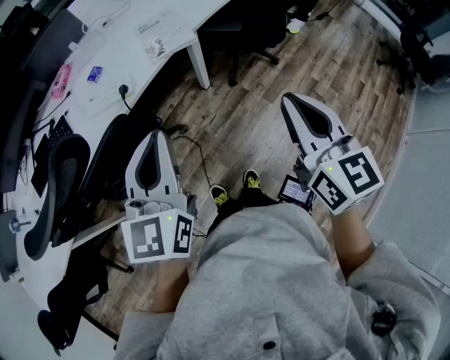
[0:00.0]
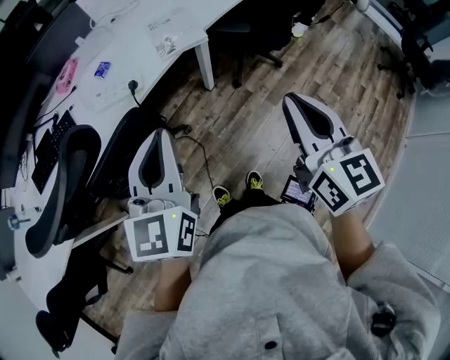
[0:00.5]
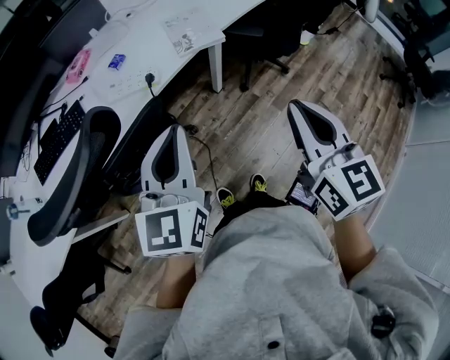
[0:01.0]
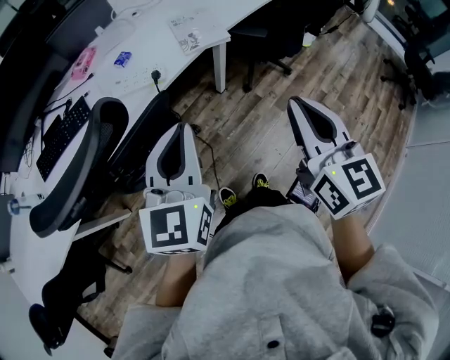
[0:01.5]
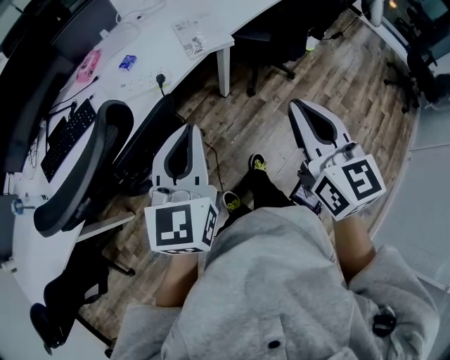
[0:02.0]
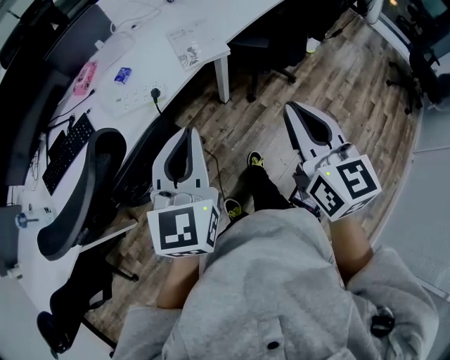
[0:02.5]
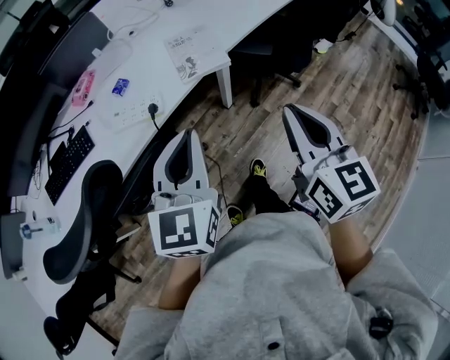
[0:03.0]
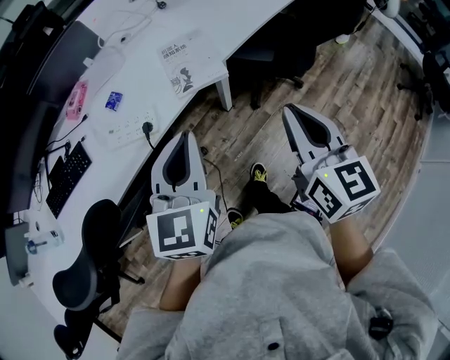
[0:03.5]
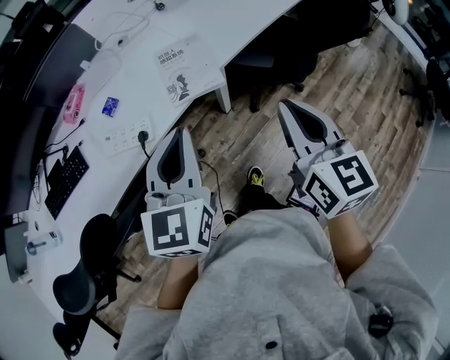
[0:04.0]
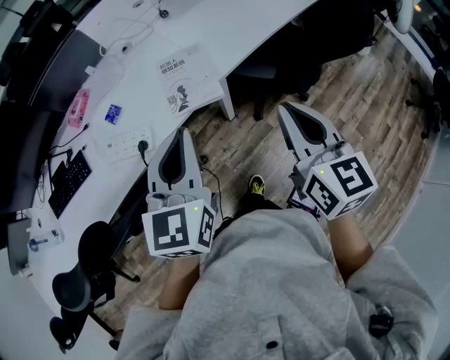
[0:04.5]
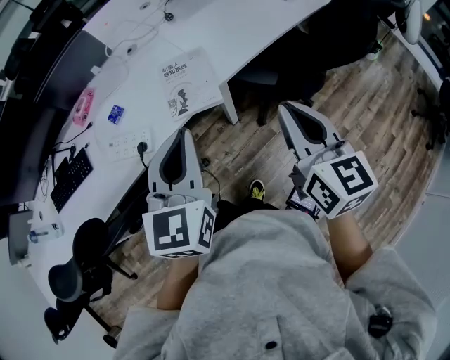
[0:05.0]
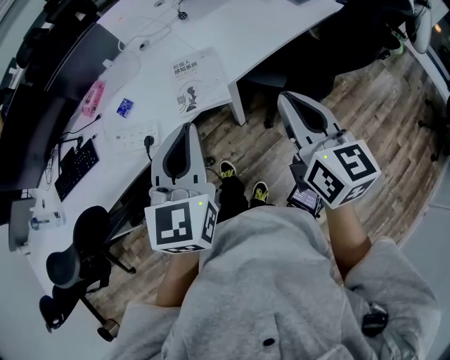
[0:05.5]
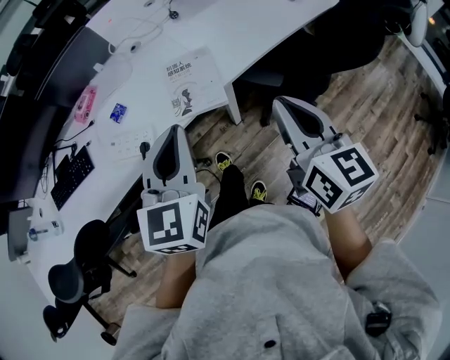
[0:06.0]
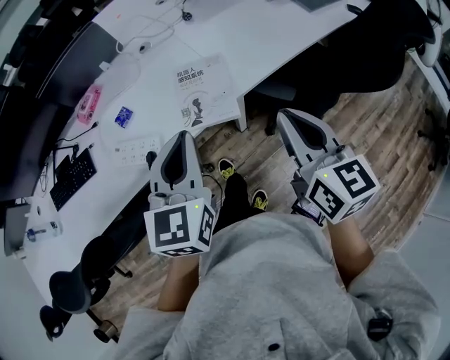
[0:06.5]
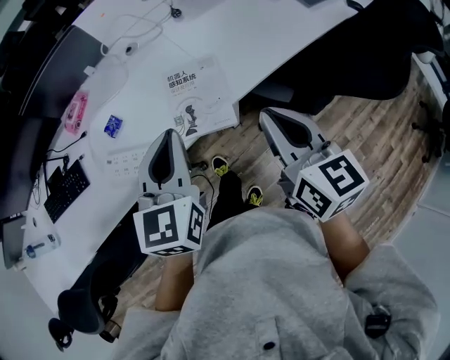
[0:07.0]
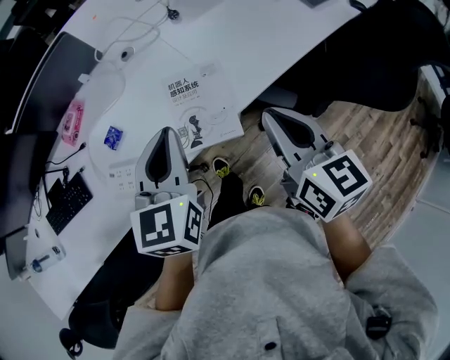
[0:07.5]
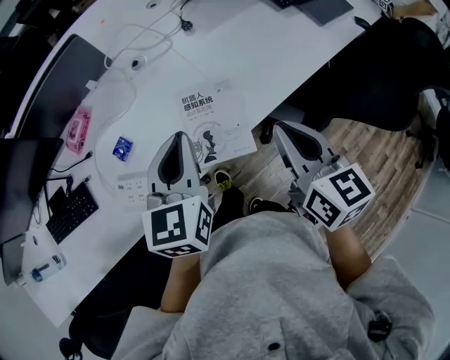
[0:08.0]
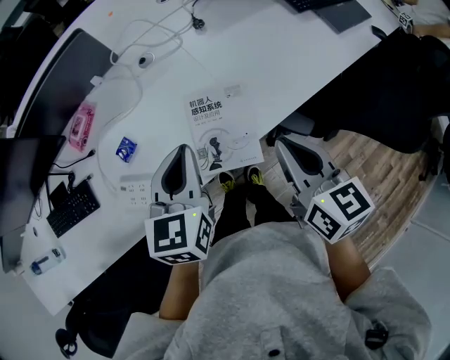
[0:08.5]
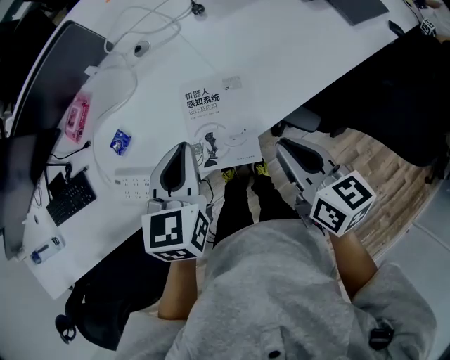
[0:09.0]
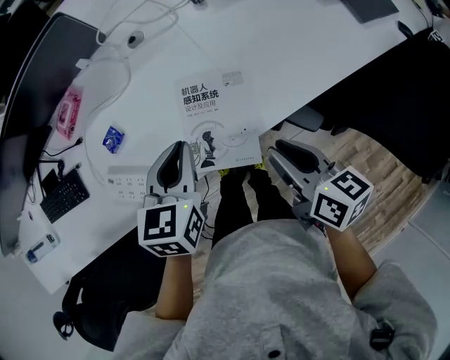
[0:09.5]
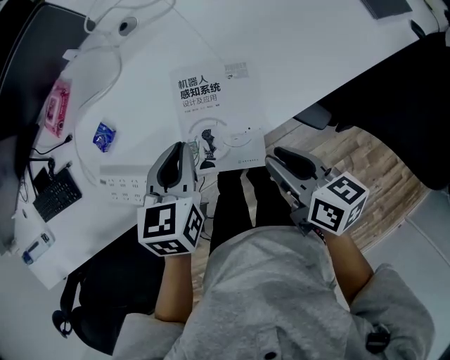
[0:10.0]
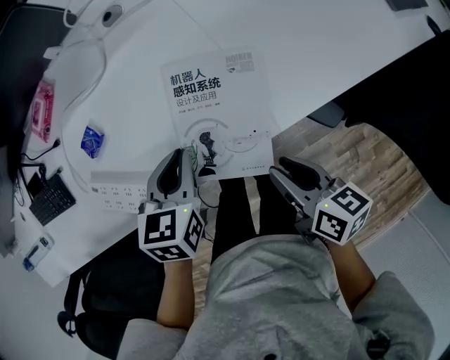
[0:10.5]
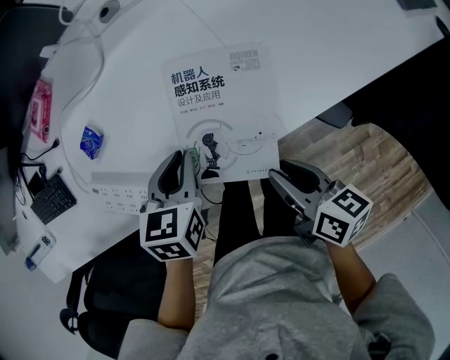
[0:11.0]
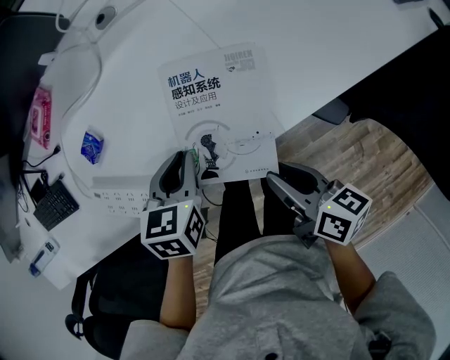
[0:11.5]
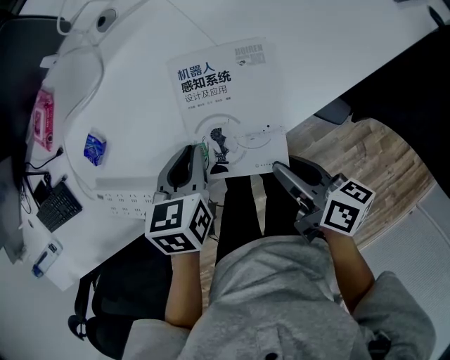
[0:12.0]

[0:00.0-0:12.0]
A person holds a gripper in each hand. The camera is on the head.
0:00.0 to 0:02.0: The left gripper heads to the left, covering some 5 cm. The right gripper heads to the left, covering approximately 10 cm.
0:02.0 to 0:04.0: The two grippers go roughly 20 cm forward.
0:04.0 to 0:06.0: The right gripper moves forward, some 5 cm, while the left gripper changes place by approximately 5 cm.
0:06.0 to 0:08.0: Both grippers move forward, roughly 20 cm.
0:08.0 to 0:10.0: The grippers both shift downward by approximately 15 cm. The left gripper changes its angle by approximately 20 degrees; the right gripper turns by roughly 40 degrees.
0:10.0 to 0:12.0: The grippers both shift downward by roughly 10 cm. The right gripper rotates about 20 degrees.

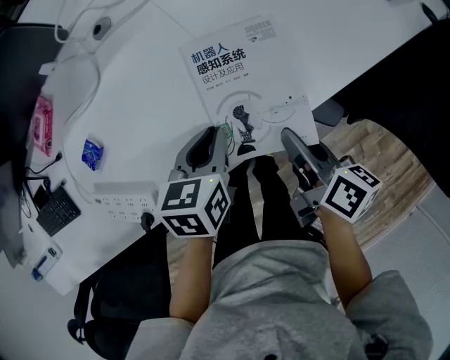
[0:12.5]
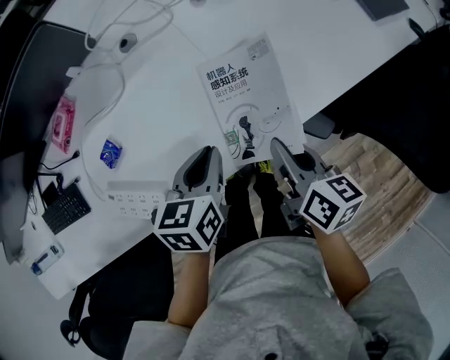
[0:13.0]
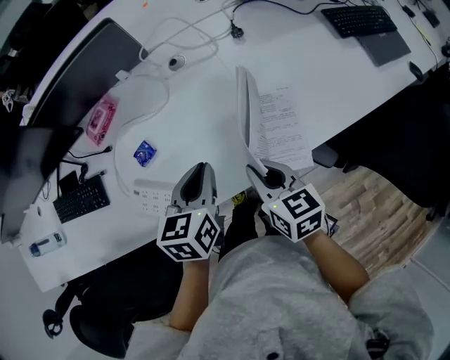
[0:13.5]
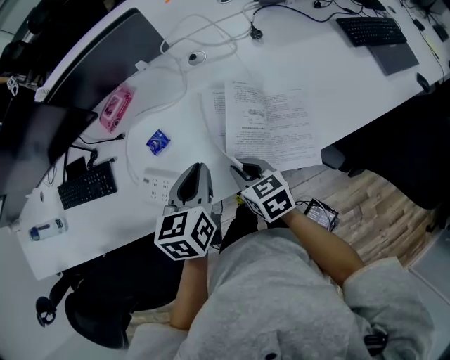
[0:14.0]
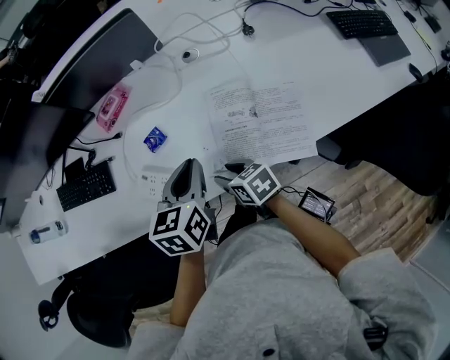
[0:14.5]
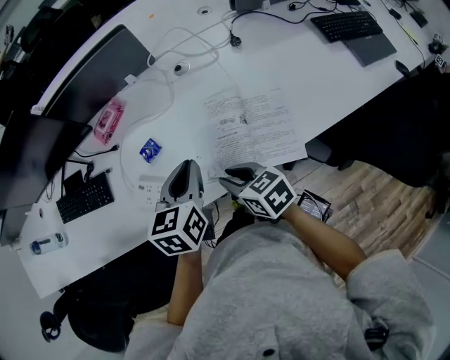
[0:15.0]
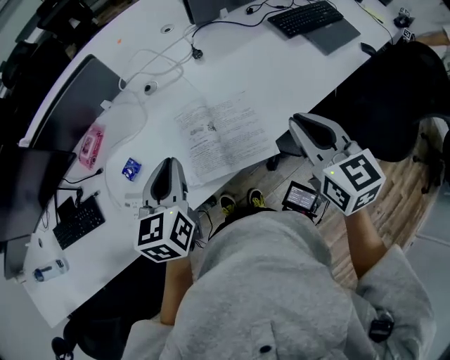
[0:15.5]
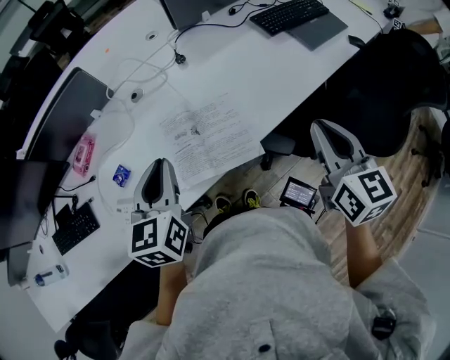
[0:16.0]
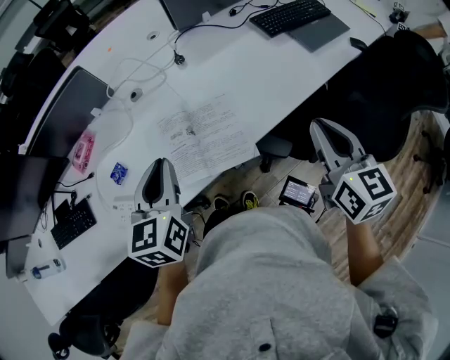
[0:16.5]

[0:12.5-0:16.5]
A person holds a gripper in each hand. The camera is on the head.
0:12.5 to 0:14.5: The left gripper goes roughly 15 cm upward, and turns by some 20 degrees. Meanwhile the right gripper moves some 10 cm upward and comes back, rotates some 60 degrees, and opens up.
0:14.5 to 0:16.5: The right gripper shifts by approximately 50 cm, swivels some 60 degrees, and closes, while the left gripper ends up about 15 cm from where it was.

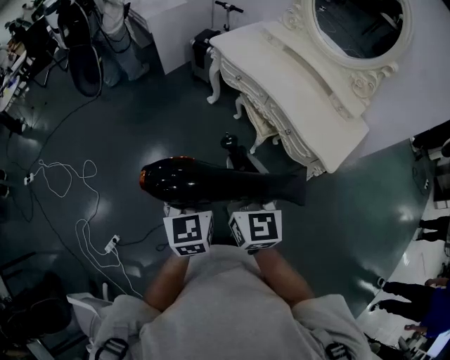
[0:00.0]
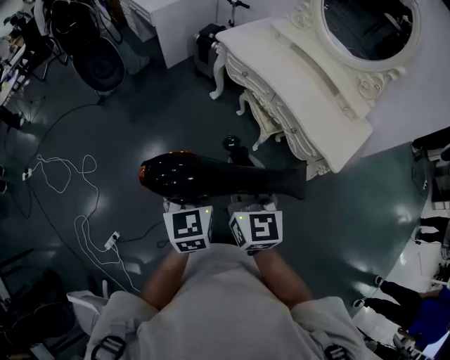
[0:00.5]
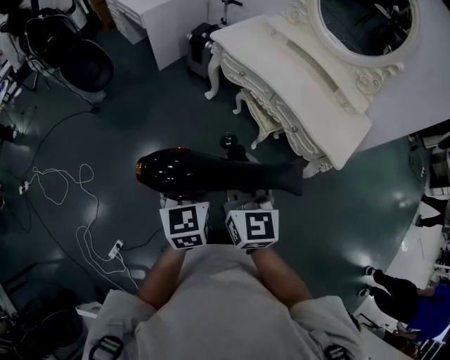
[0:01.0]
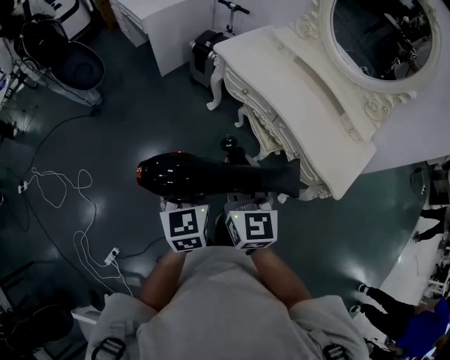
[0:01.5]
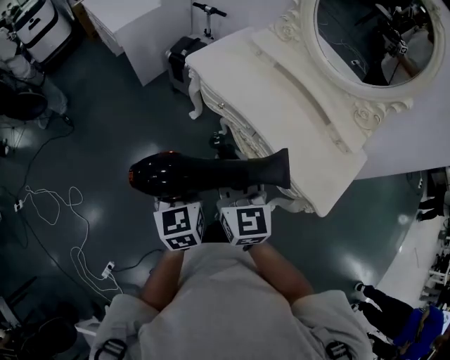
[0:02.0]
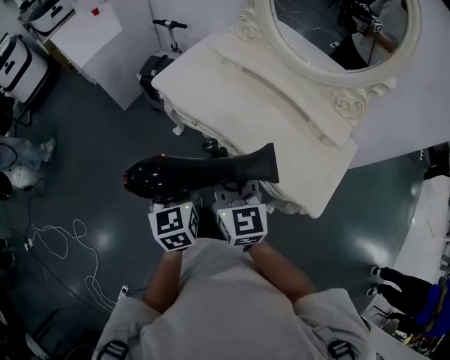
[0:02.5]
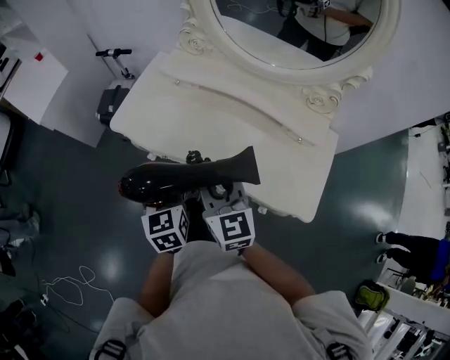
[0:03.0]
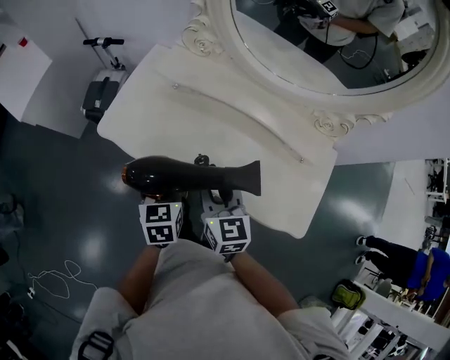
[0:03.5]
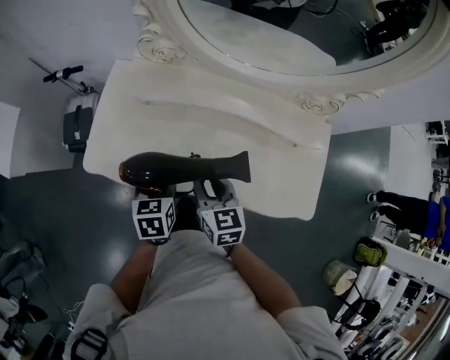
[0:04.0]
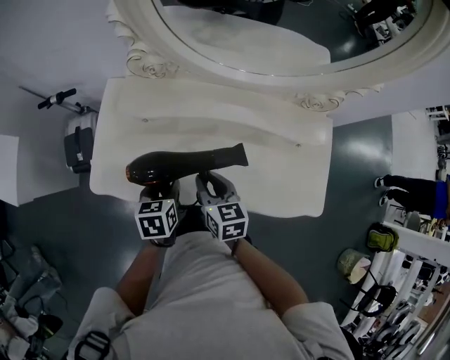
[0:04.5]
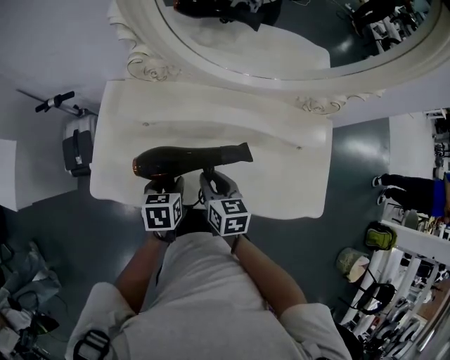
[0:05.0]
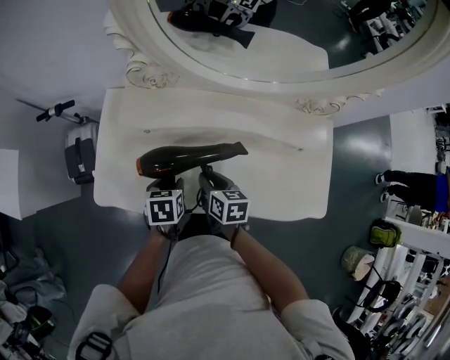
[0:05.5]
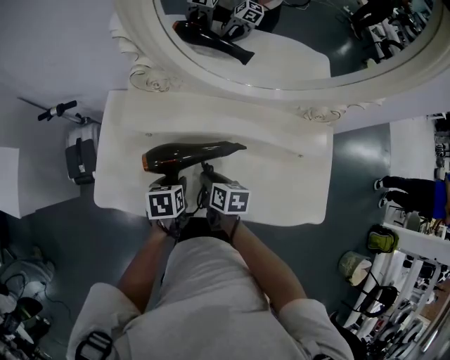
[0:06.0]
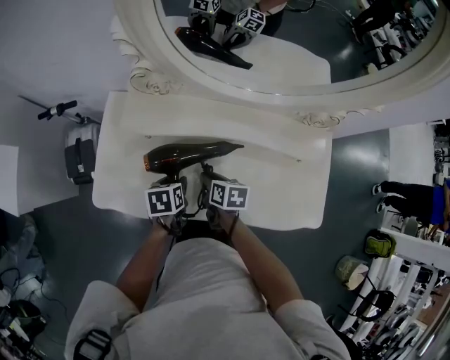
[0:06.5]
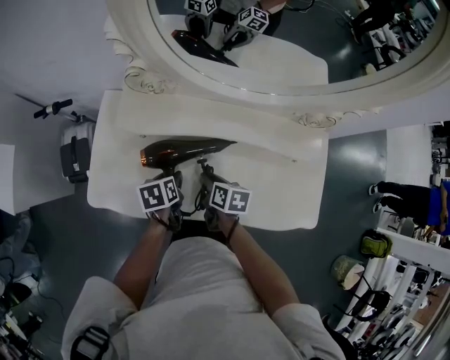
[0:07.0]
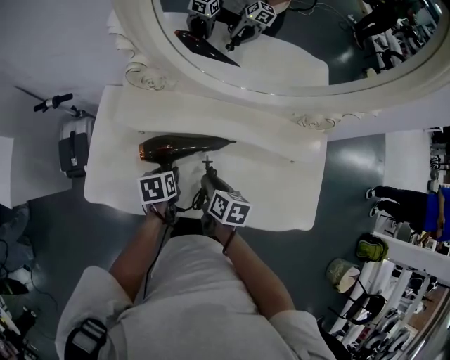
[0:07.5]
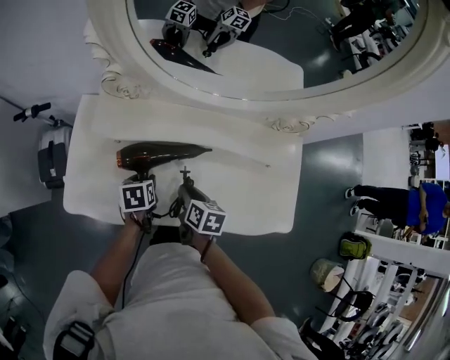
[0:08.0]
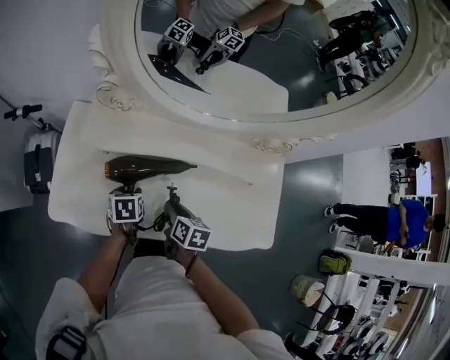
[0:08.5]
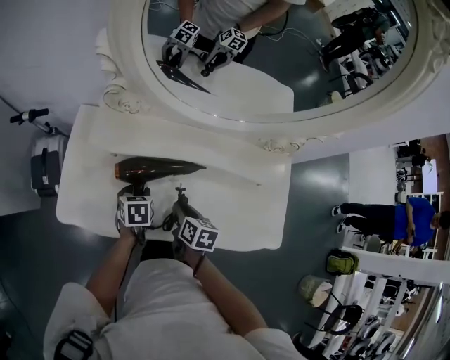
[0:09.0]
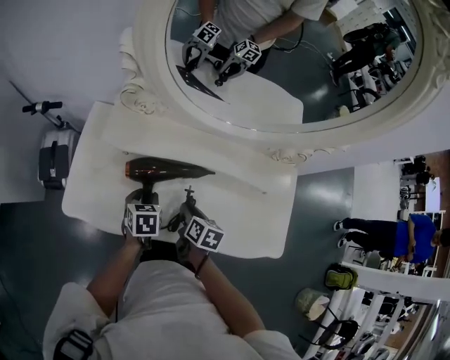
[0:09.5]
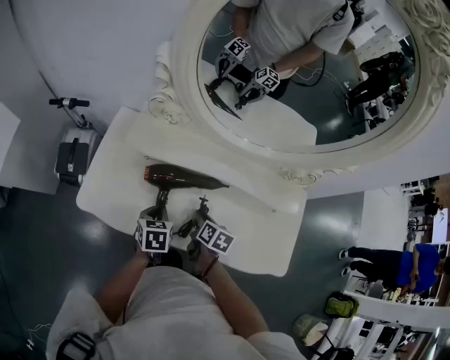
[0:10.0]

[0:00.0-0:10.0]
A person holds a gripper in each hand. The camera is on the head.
0:00.0 to 0:02.0: Both grippers move forward, roughly 25 cm.
0:02.0 to 0:04.0: The right gripper ends up about 40 cm from where it was, and rotates approximately 40 degrees, while the left gripper ends up some 40 cm from where it was, and rotates roughly 50 degrees.
0:04.0 to 0:06.0: The left gripper goes roughly 10 cm forward and downward, while the right gripper travels downward and forward by some 15 cm, and turns by roughly 30 degrees.
0:06.0 to 0:08.0: The grippers stay close to where they were, moving slightly.
0:08.0 to 0:10.0: The left gripper ends up roughly 5 cm from where it was, and closes up.
